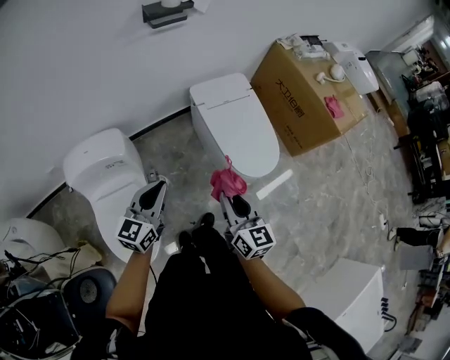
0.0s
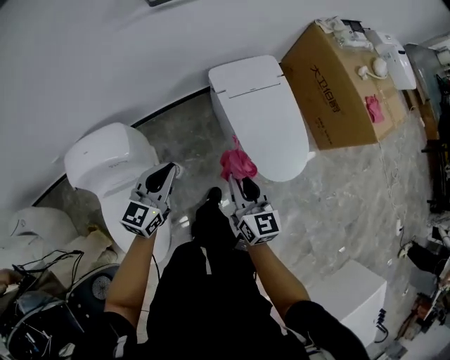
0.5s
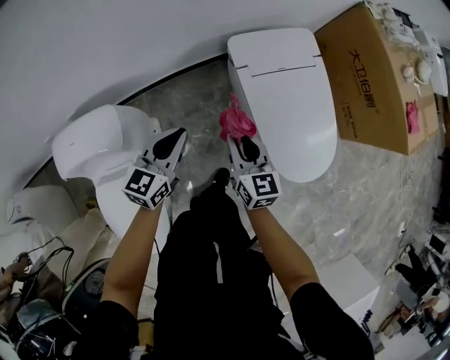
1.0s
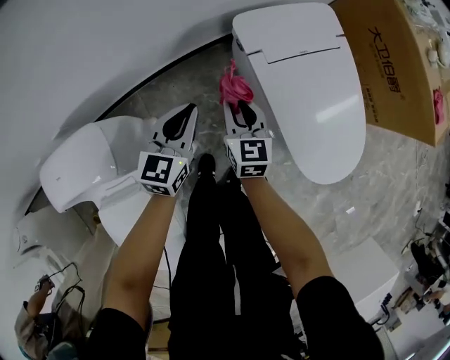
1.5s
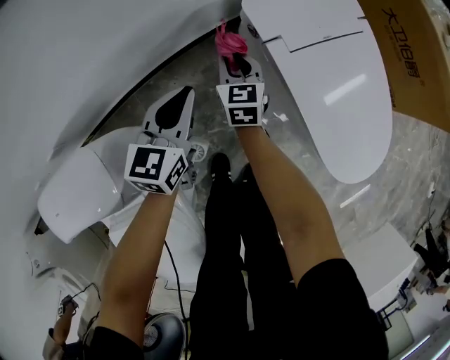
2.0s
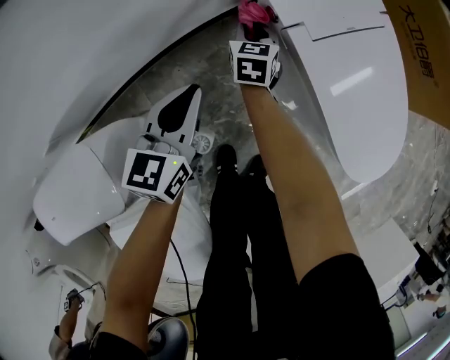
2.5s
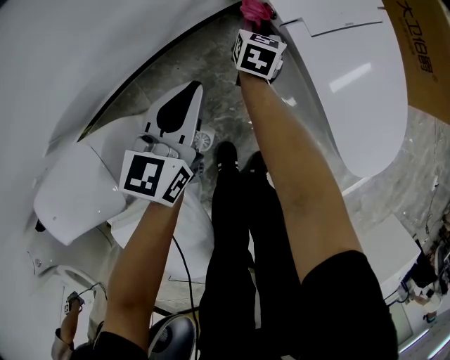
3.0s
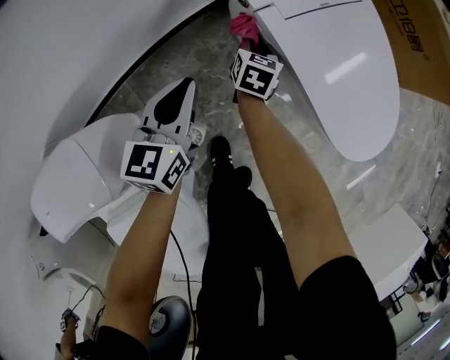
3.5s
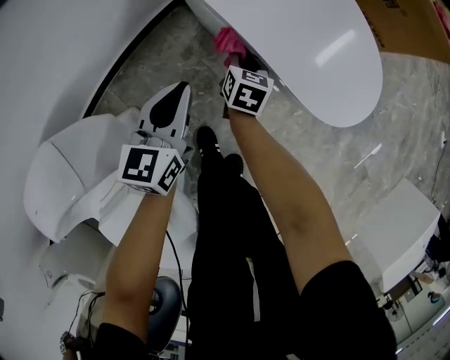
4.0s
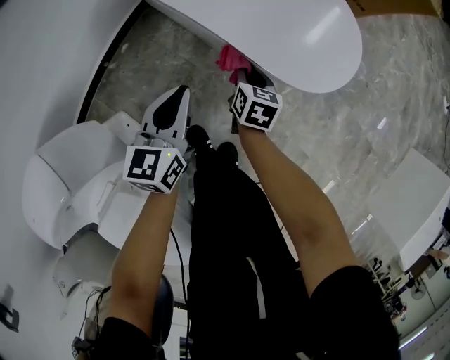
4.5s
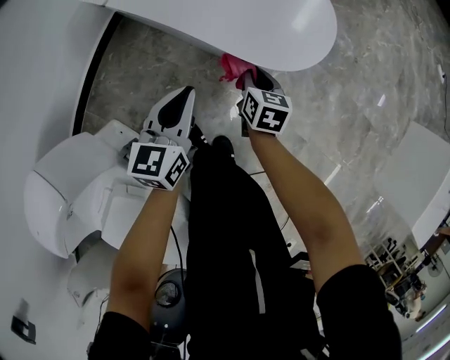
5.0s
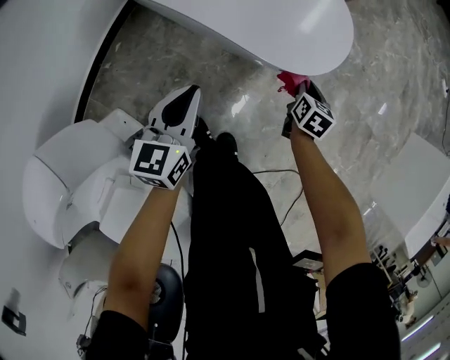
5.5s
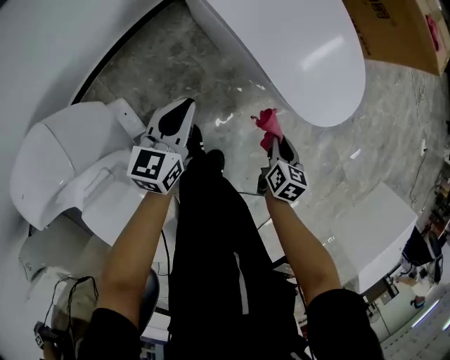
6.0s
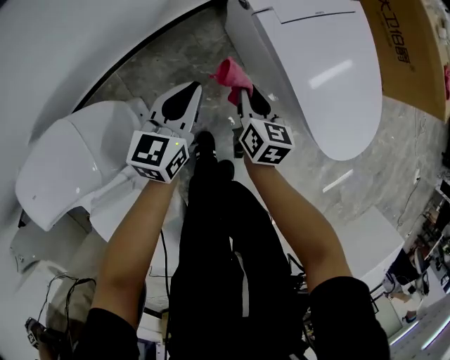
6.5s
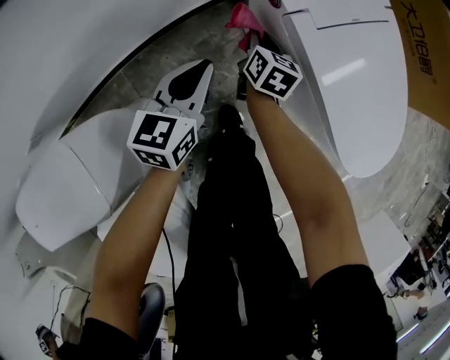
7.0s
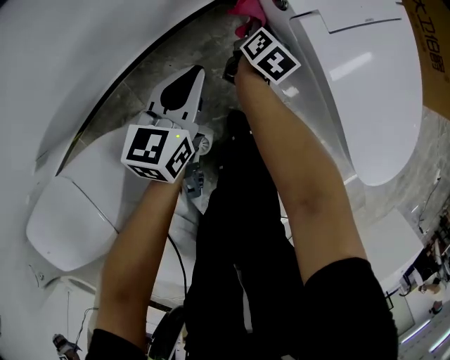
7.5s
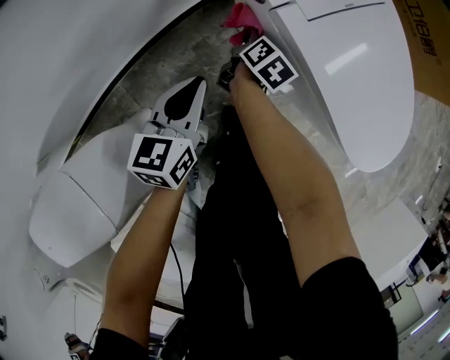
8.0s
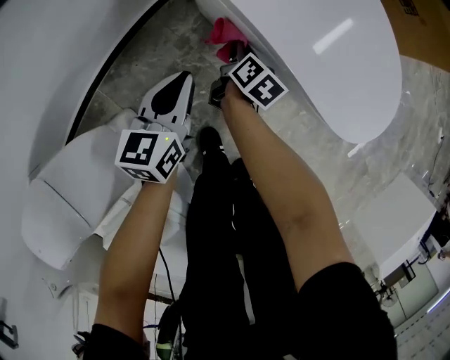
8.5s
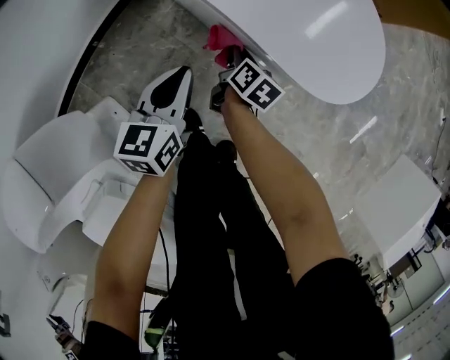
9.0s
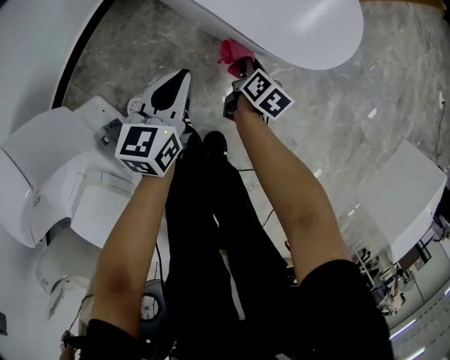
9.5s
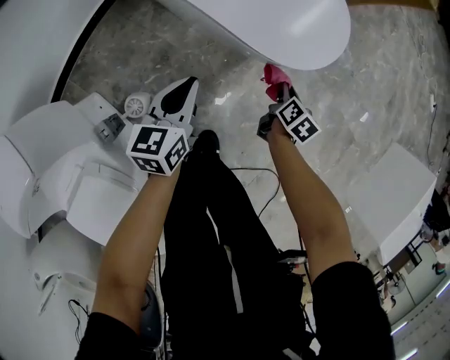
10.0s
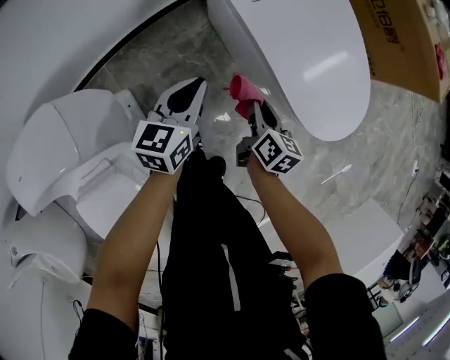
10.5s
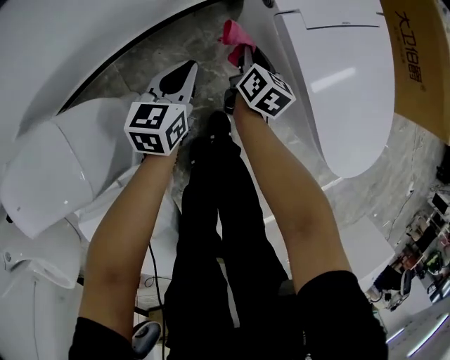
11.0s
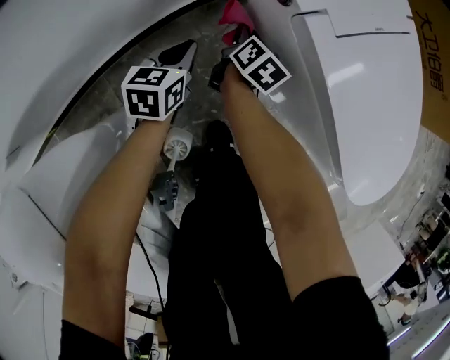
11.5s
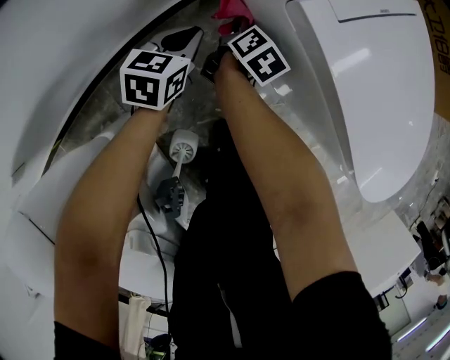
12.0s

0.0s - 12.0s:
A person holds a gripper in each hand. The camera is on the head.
0.0s - 2.0s: The grippers both shift downward and forward by about 60 cm. The right gripper changes its angle by about 30 degrees.
2.0s - 4.0s: The right gripper is displaced to the right by roughly 20 cm, and changes its angle by roughly 40 degrees, while the left gripper is displaced to the right and backward by about 15 cm.
4.0s - 6.0s: The left gripper moves about 15 cm to the right and comes back. Meanwhile the right gripper travels to the right and backward by approximately 30 cm.
6.0s - 8.0s: The right gripper shifts about 40 cm forward and to the left, and changes its angle by some 30 degrees, while the left gripper goes approximately 20 cm to the left, forward and downward.
8.0s - 10.0s: The right gripper goes about 50 cm to the right and backward; the left gripper travels to the right by approximately 30 cm.
10.0s - 12.0s: The left gripper ends up some 40 cm from where it was; the right gripper ends up some 60 cm from where it was.

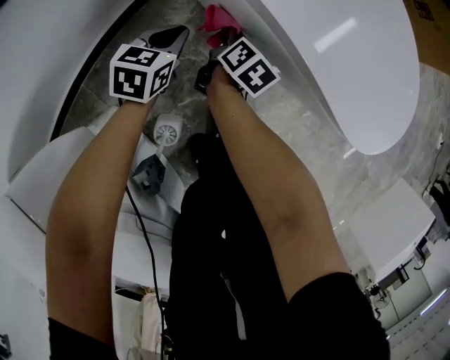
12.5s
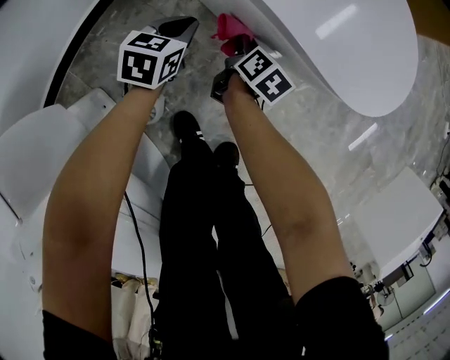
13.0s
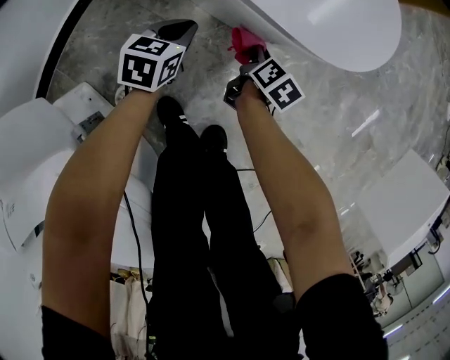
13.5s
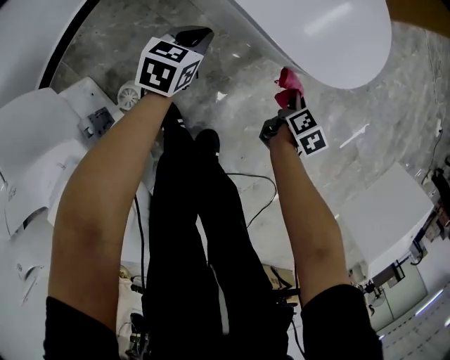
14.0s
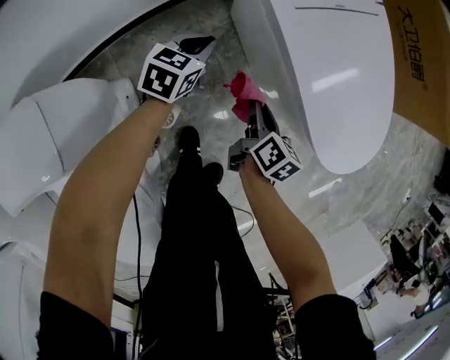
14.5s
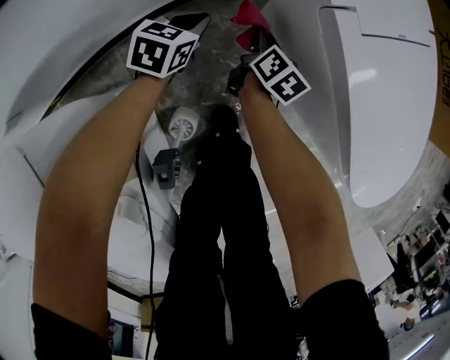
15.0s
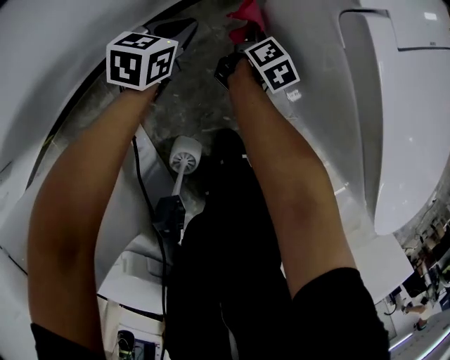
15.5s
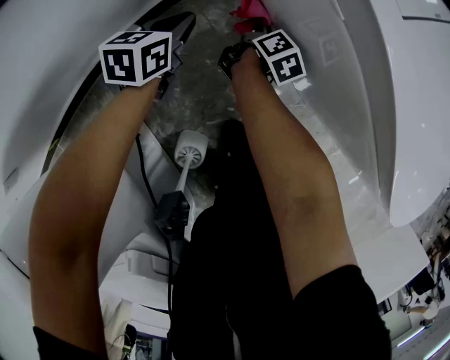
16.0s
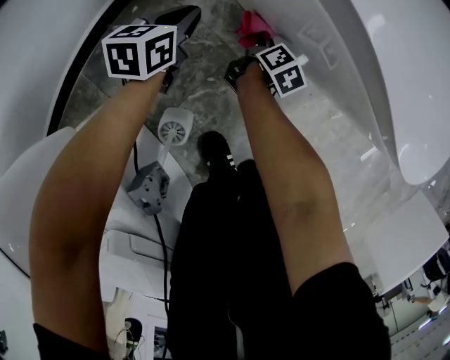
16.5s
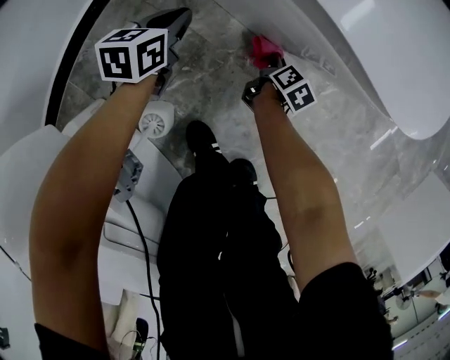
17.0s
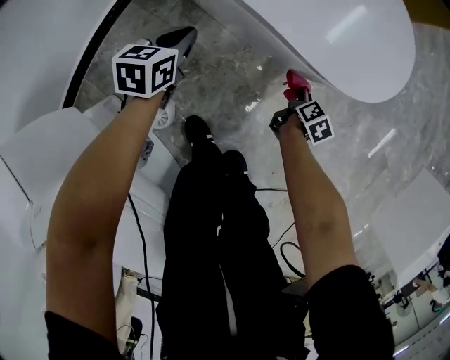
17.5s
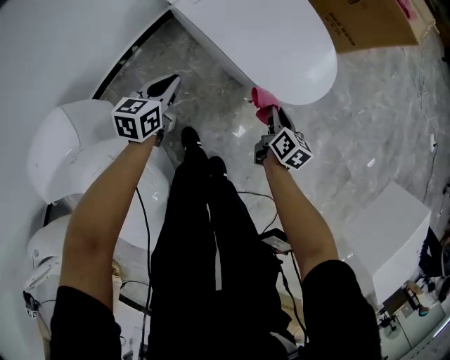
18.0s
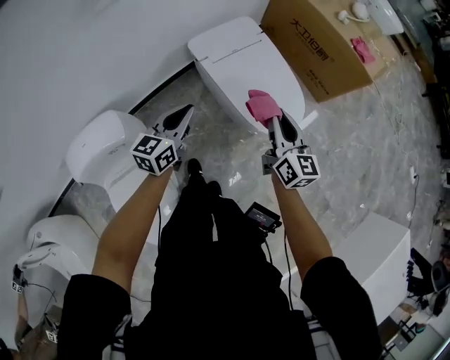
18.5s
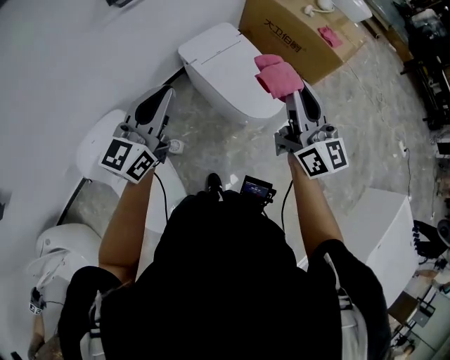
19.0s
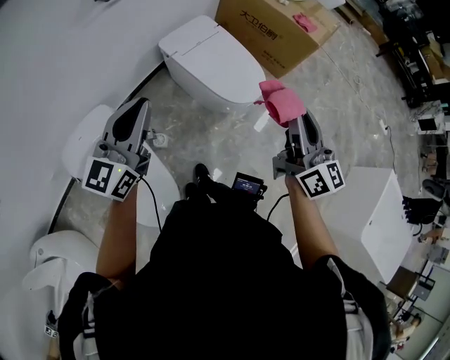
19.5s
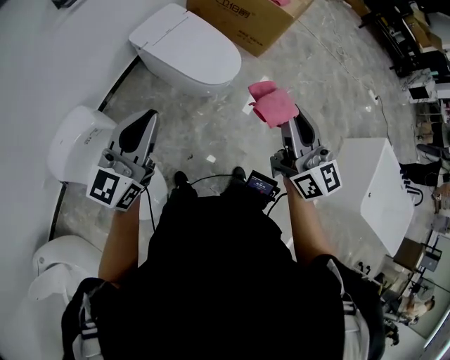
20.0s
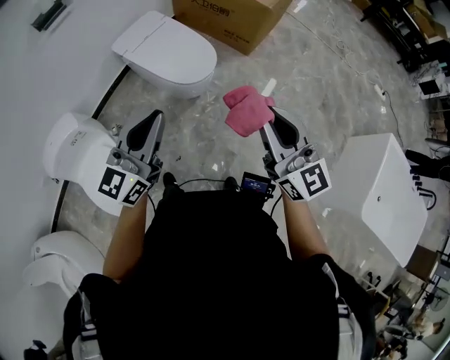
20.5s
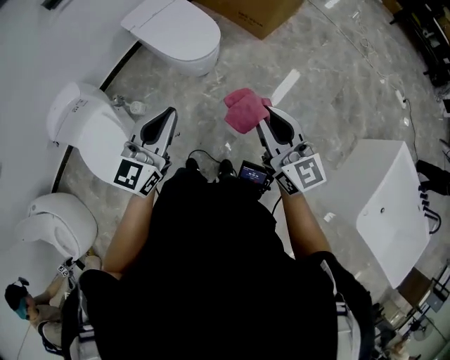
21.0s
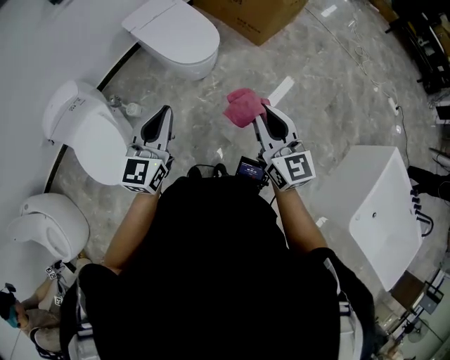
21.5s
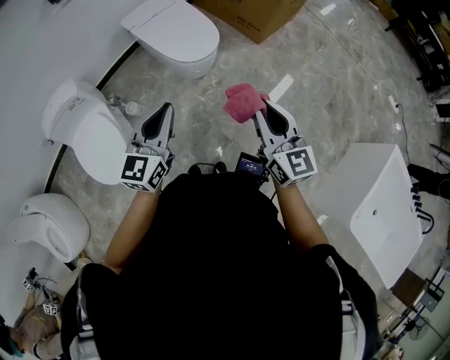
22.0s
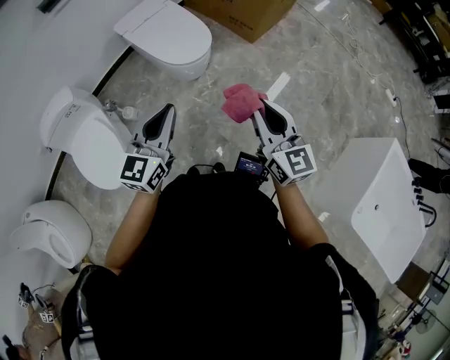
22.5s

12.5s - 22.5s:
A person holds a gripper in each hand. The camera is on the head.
12.5s - 14.5s: The left gripper goes some 10 cm upward. Meanwhile the right gripper swivels some 20 degrees.
14.5s - 16.5s: The right gripper heads downward, covering about 30 cm, and changes its angle by some 40 degrees, while the left gripper heads downward, covering approximately 15 cm.
16.5s - 18.5s: The grippers both shift upward by roughly 60 cm. The right gripper tips its fingers upward by approximately 40 degrees; the left gripper turns by about 30 degrees.
18.5s - 20.5s: The left gripper moves to the right, upward and backward, some 50 cm, and swivels roughly 30 degrees; the right gripper goes some 50 cm backward, to the right and upward, and turns by approximately 20 degrees.
20.5s - 22.5s: The grippers both shift to the right and downward by some 15 cm.

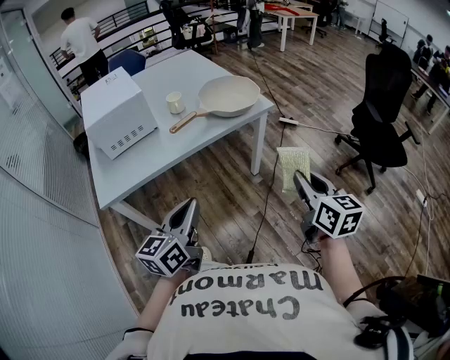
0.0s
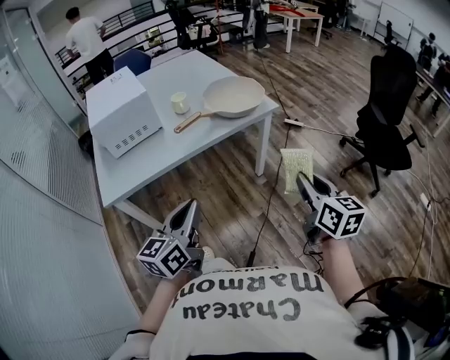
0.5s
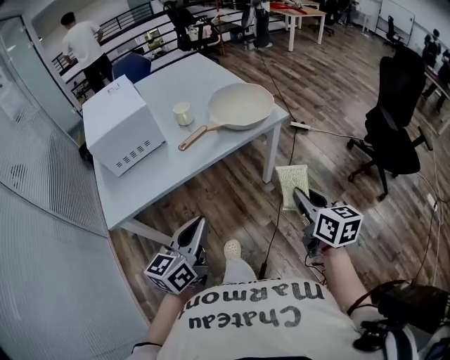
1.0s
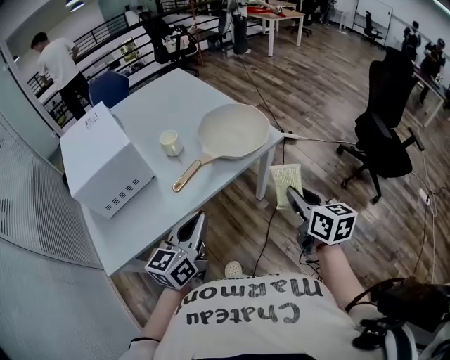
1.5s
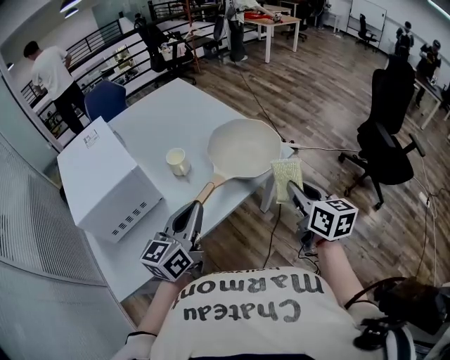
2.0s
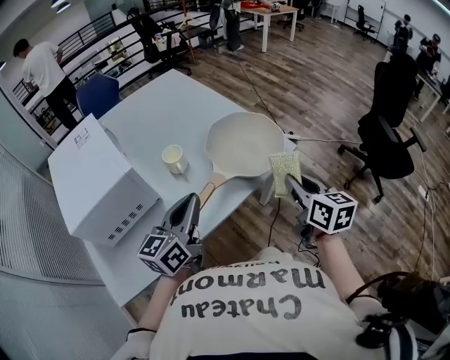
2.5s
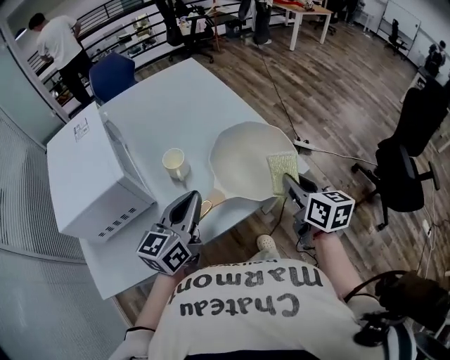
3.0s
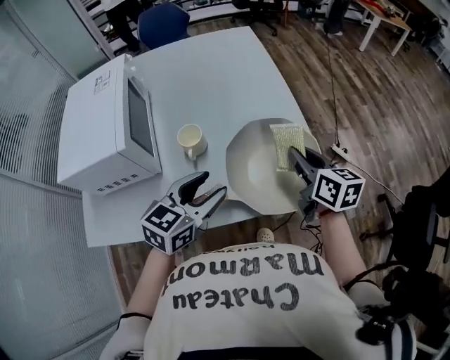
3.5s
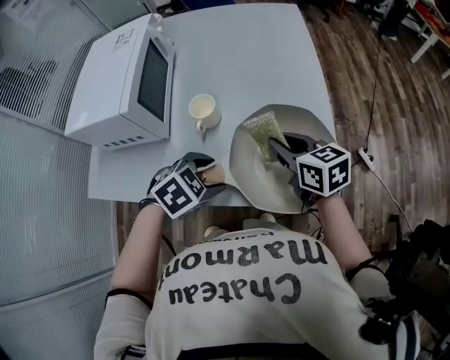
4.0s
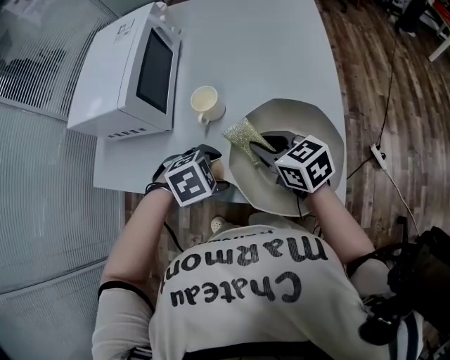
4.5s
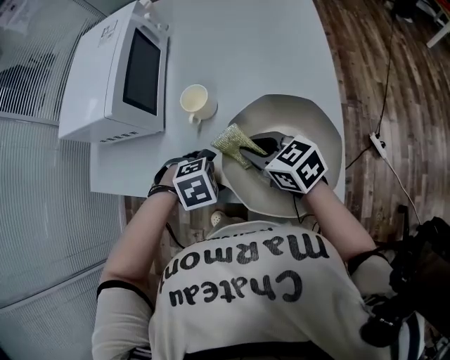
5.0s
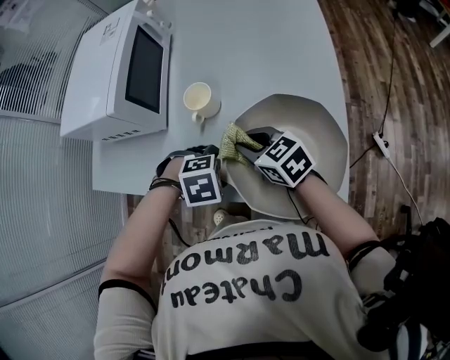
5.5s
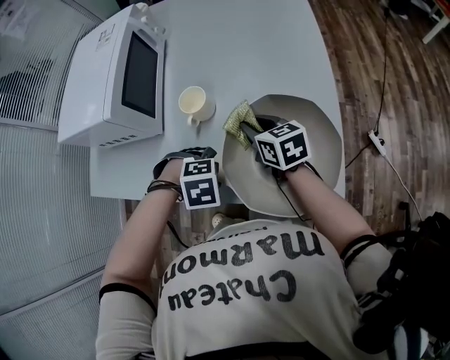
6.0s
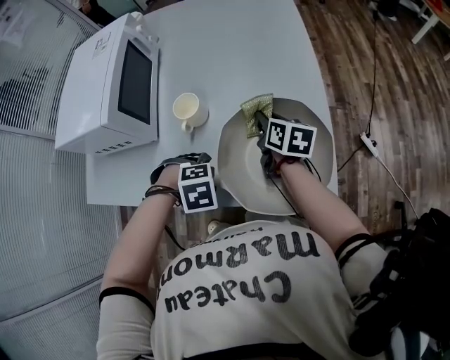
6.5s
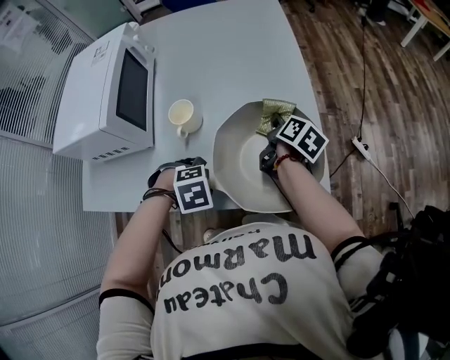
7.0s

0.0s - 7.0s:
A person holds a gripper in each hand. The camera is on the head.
0.0s - 2.0s: The left gripper shifts approximately 30 cm forward; the right gripper heads forward and to the left, covering about 30 cm.
2.0s - 3.5s: The right gripper is displaced forward by about 30 cm, and turns by about 30 degrees; the left gripper heads forward and downward, covering some 15 cm, turns by approximately 30 degrees, and opens up.
3.5s - 5.0s: The right gripper shifts by some 15 cm, and changes its angle by some 50 degrees, while the left gripper travels downward by roughly 15 cm, and tips its fingers downward by roughly 60 degrees.
5.0s - 7.0s: The right gripper ends up about 20 cm from where it was, and turns by roughly 80 degrees.
